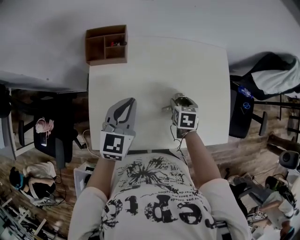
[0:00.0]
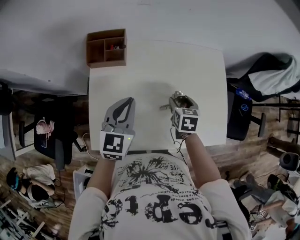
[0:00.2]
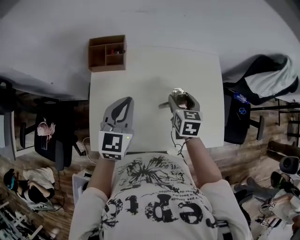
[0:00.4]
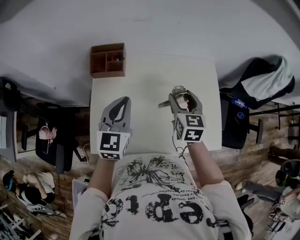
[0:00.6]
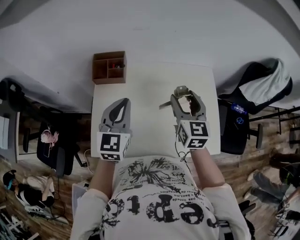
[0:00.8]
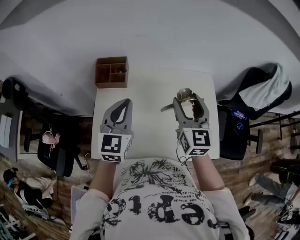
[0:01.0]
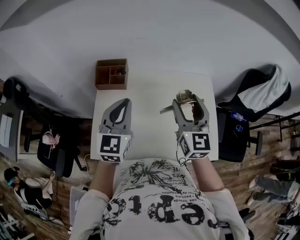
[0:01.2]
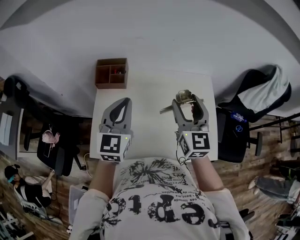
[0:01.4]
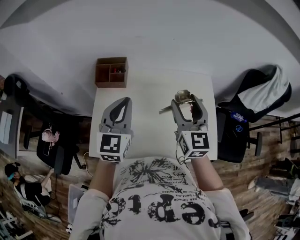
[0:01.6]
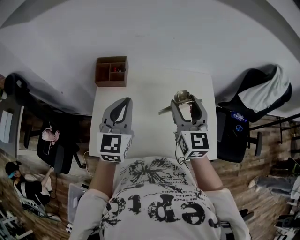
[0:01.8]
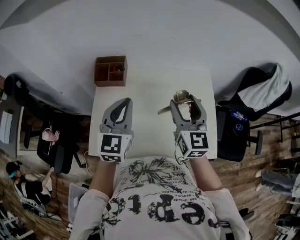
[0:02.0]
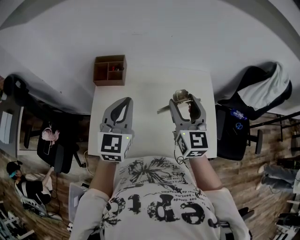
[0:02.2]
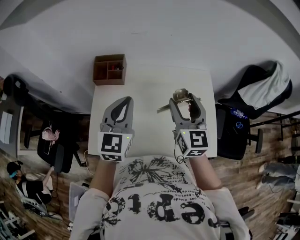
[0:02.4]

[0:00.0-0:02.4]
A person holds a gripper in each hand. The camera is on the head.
0:00.0 to 0:01.2: The left gripper goes about 15 cm upward, while the right gripper goes approximately 35 cm upward, and angles its fingers upward, by some 60 degrees.
0:01.2 to 0:02.4: The grippers move only a little.

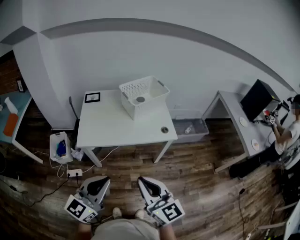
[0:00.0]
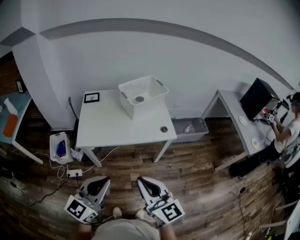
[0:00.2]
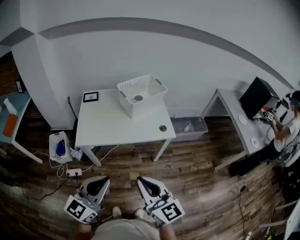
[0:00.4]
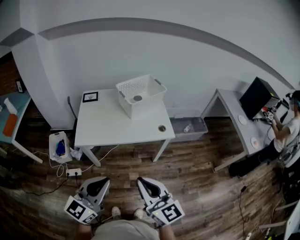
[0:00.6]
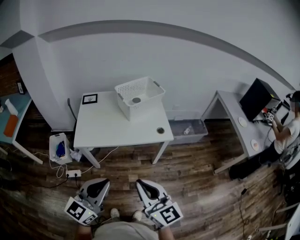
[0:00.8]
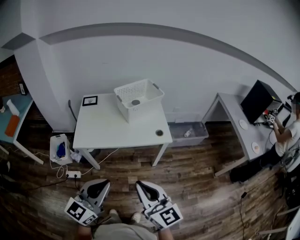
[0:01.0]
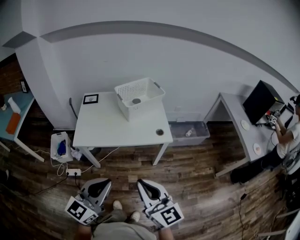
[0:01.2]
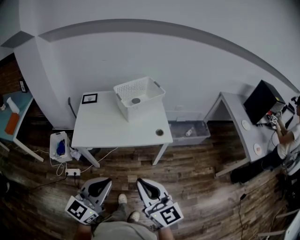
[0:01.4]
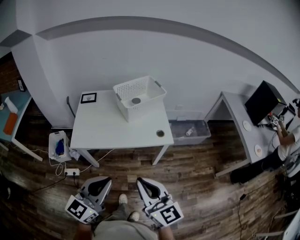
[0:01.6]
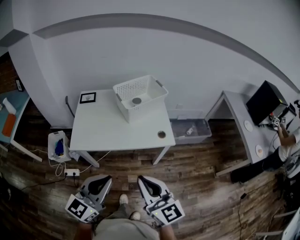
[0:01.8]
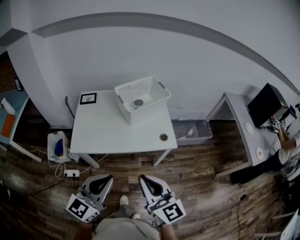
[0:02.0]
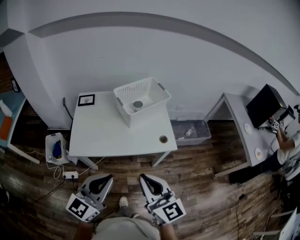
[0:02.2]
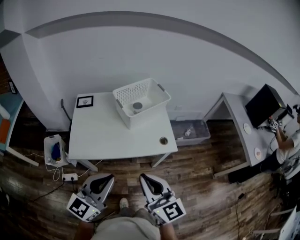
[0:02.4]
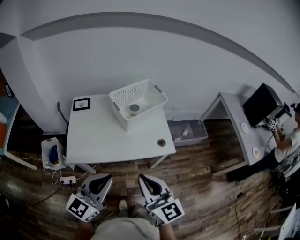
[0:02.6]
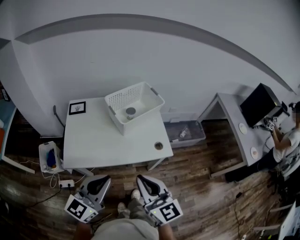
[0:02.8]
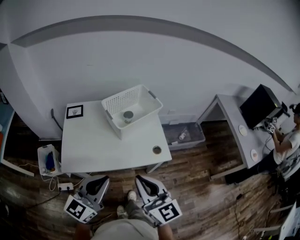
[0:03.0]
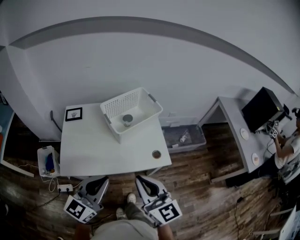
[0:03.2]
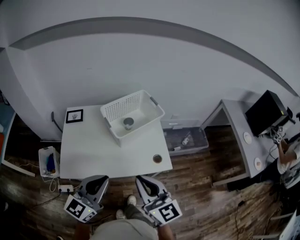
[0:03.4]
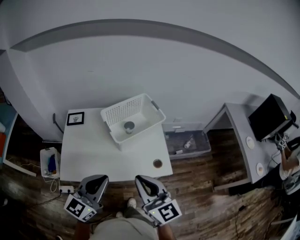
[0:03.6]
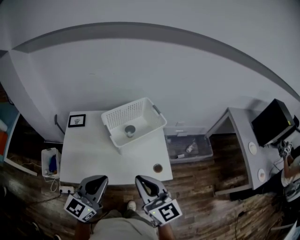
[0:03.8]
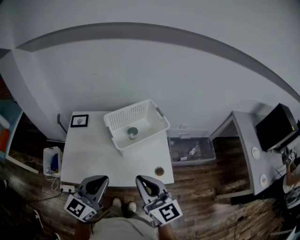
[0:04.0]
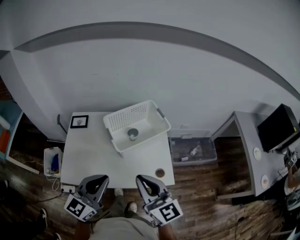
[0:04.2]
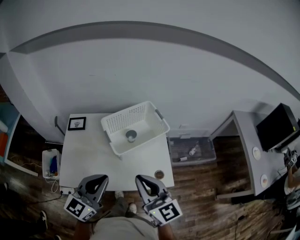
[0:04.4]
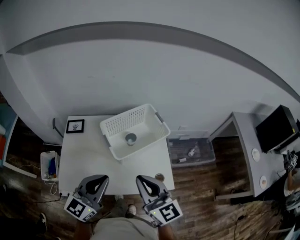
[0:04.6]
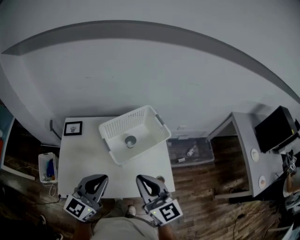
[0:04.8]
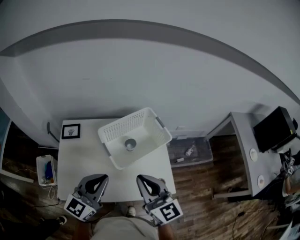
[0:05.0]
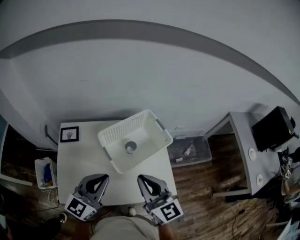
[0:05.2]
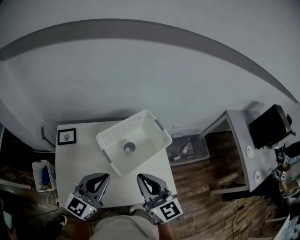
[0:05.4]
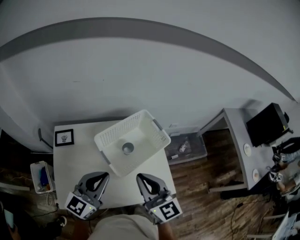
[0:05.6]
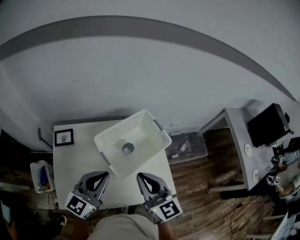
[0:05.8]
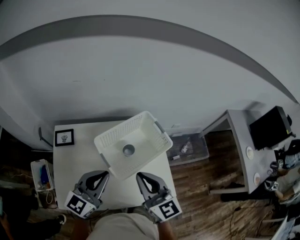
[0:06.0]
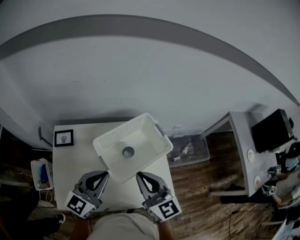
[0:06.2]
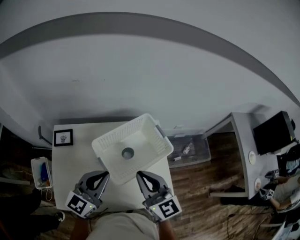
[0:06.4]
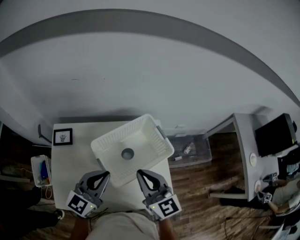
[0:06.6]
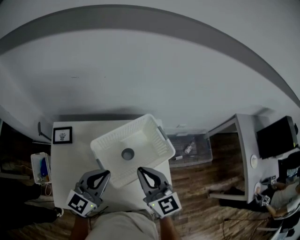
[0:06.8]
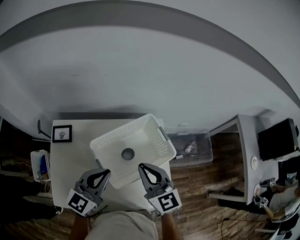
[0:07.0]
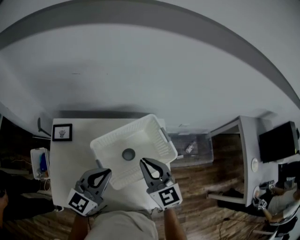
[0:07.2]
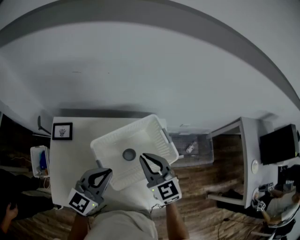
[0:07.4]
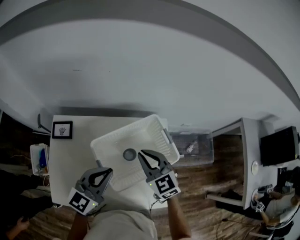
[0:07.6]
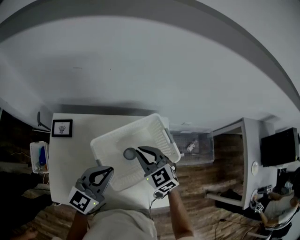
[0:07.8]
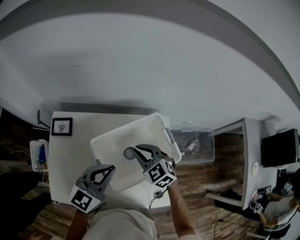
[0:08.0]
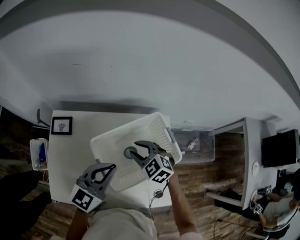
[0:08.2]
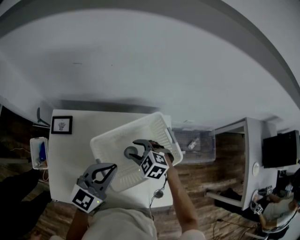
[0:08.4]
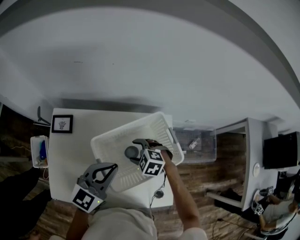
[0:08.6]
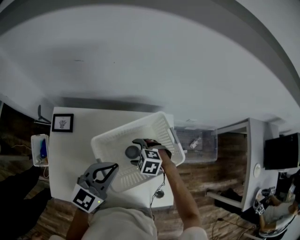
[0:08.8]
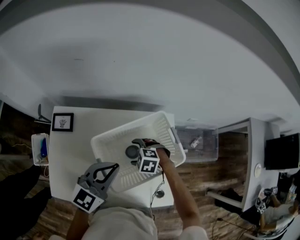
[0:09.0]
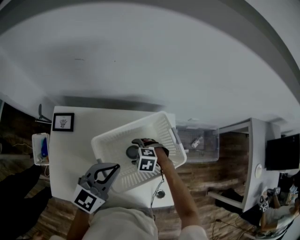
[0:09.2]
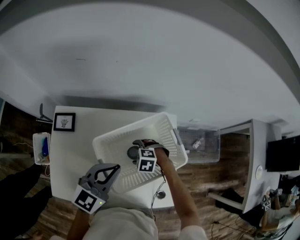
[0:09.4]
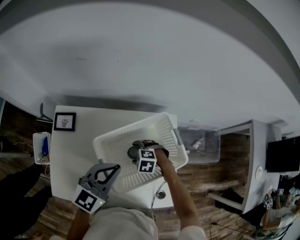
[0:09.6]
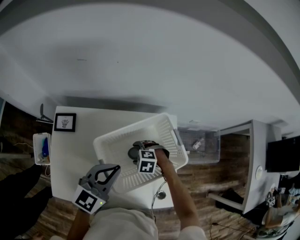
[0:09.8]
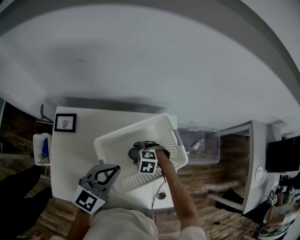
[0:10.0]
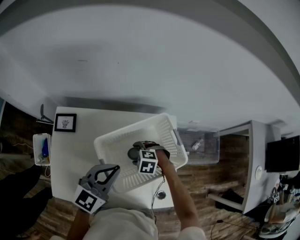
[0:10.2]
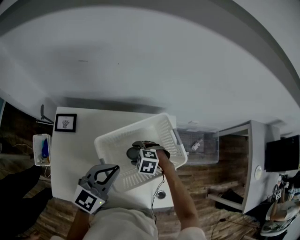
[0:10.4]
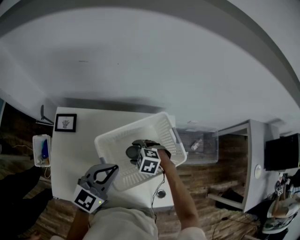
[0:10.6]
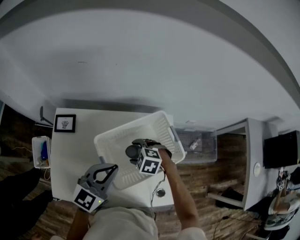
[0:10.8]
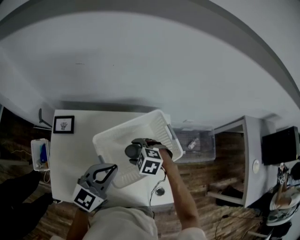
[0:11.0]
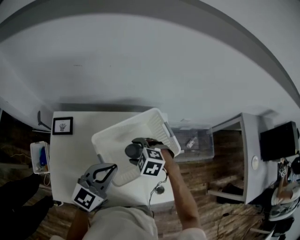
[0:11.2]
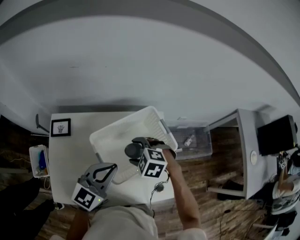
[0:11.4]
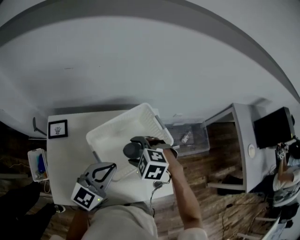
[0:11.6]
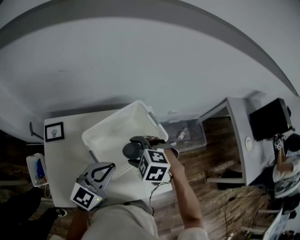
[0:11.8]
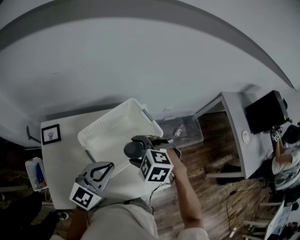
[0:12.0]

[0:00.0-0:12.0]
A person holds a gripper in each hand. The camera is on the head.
0:00.0 to 0:01.6: The grippers both shift to the right by about 5 cm.
0:01.6 to 0:03.0: The grippers both shift forward by approximately 20 cm.
0:03.0 to 0:04.4: The two grippers go roughly 15 cm forward.
0:04.4 to 0:06.0: Both grippers travel together forward, roughly 15 cm.
0:06.0 to 0:07.6: The left gripper heads forward, covering about 10 cm. Meanwhile the right gripper travels forward and downward by approximately 20 cm, and rotates about 30 degrees.
0:07.6 to 0:09.0: The right gripper is displaced downward by about 20 cm, angles its fingers downward, by some 40 degrees, and opens.
0:09.0 to 0:10.4: The grippers move only a little.
0:10.4 to 0:12.0: The right gripper heads upward, covering approximately 20 cm, and turns by about 20 degrees; the left gripper changes place by roughly 10 cm.

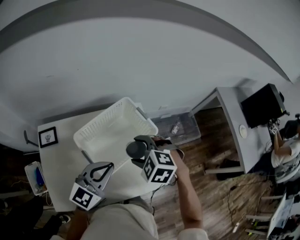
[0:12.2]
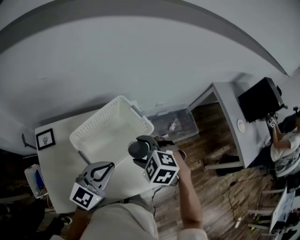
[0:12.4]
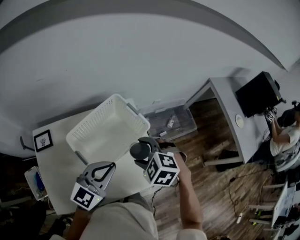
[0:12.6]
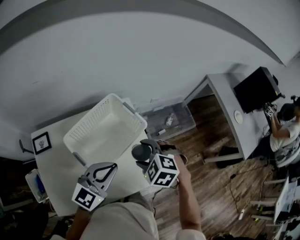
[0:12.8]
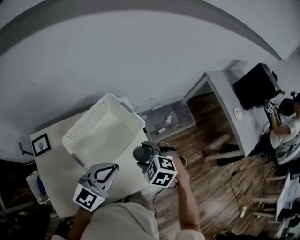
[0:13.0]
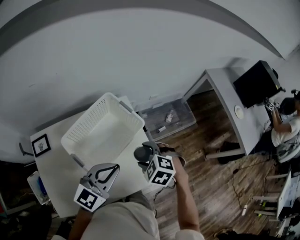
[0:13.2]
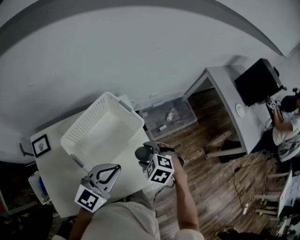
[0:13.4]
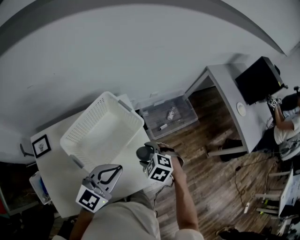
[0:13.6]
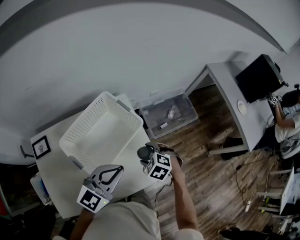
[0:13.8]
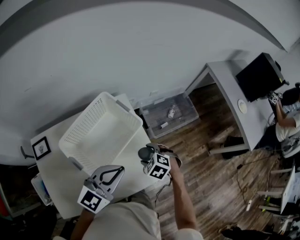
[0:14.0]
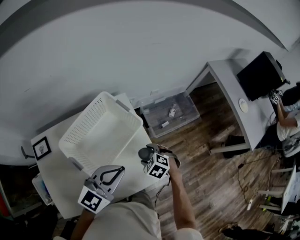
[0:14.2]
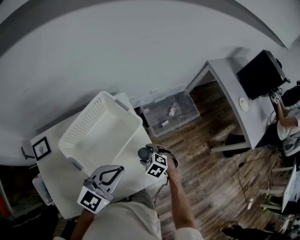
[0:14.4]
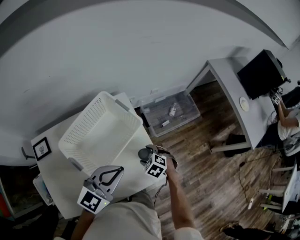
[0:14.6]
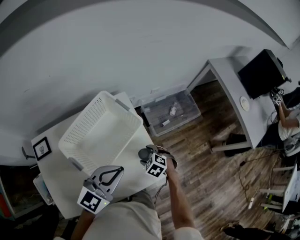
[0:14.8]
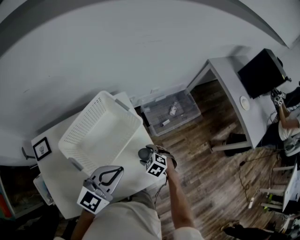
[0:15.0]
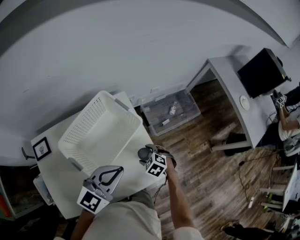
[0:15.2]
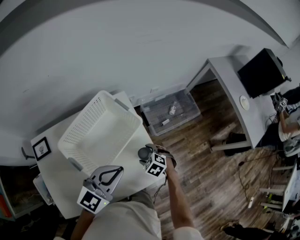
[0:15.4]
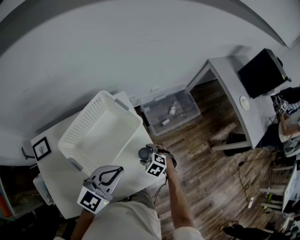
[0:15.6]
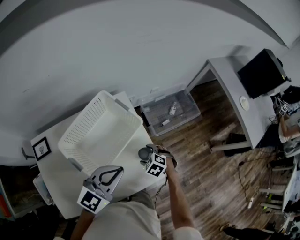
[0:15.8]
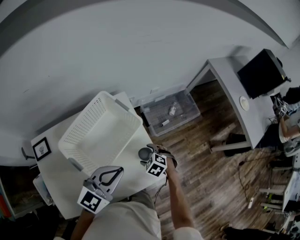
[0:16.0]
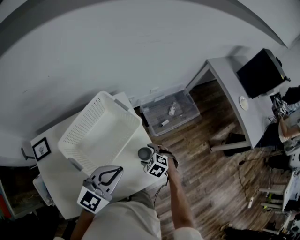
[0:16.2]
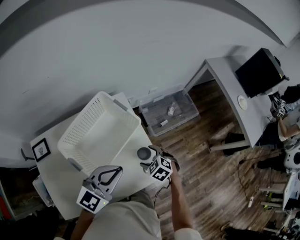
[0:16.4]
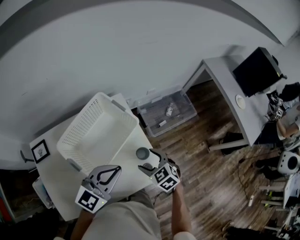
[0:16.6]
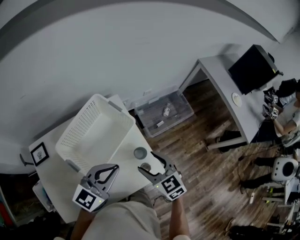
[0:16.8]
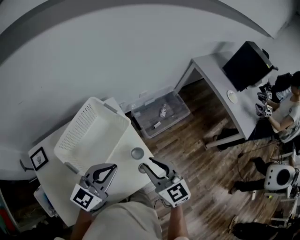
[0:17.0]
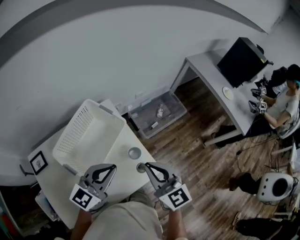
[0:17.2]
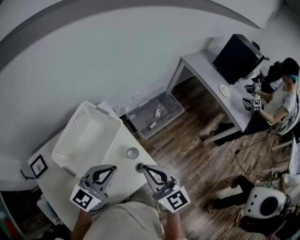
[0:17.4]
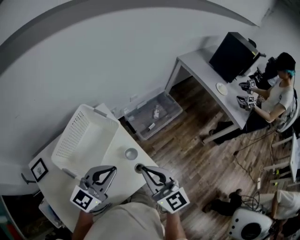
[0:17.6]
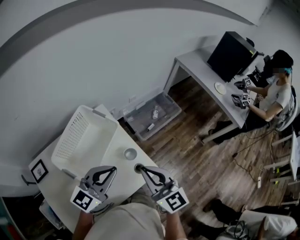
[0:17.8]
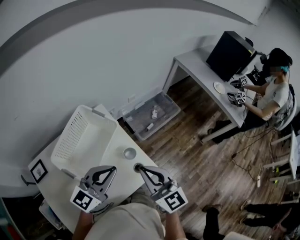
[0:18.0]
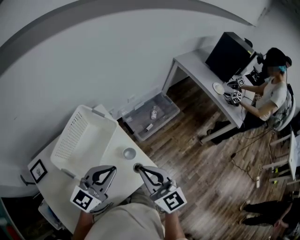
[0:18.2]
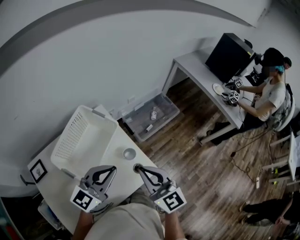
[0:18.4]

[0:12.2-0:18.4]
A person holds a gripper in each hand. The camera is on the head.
0:12.2 to 0:13.8: The right gripper travels downward and to the right by roughly 20 cm, and rotates about 20 degrees, while the left gripper shifts roughly 10 cm to the right.
0:13.8 to 0:15.4: The right gripper shifts some 10 cm downward.
0:15.4 to 0:16.8: The right gripper heads upward, covering roughly 20 cm, and tips its fingers upward by some 30 degrees.
0:16.8 to 0:18.4: The left gripper ends up approximately 5 cm from where it was, while the right gripper heads upward and backward, covering about 15 cm, tips its fingers upward by some 30 degrees, and closes up.

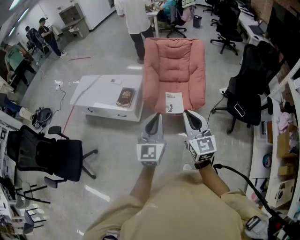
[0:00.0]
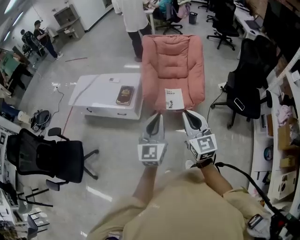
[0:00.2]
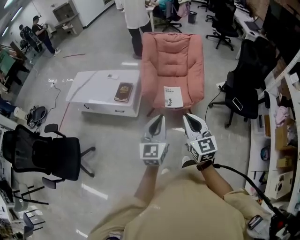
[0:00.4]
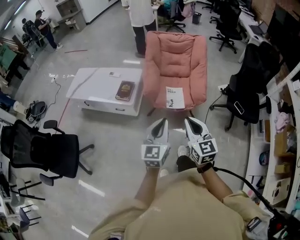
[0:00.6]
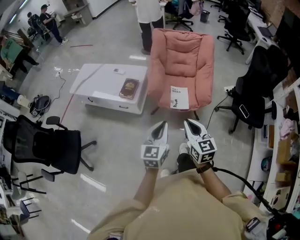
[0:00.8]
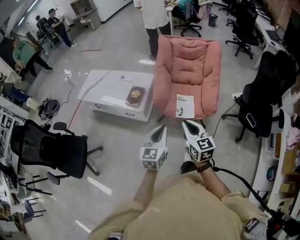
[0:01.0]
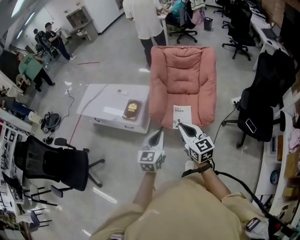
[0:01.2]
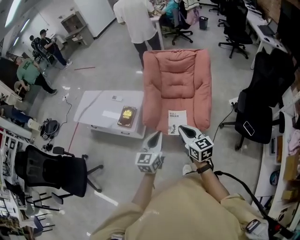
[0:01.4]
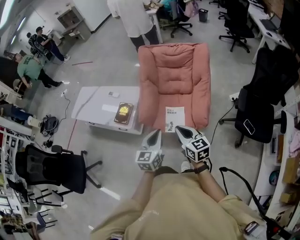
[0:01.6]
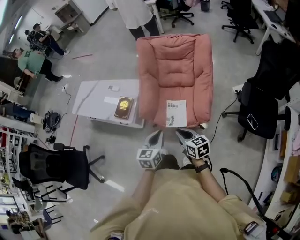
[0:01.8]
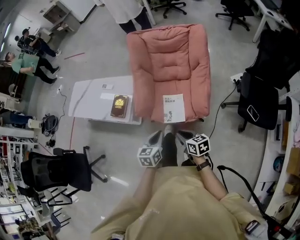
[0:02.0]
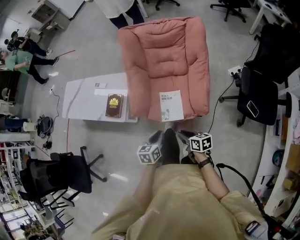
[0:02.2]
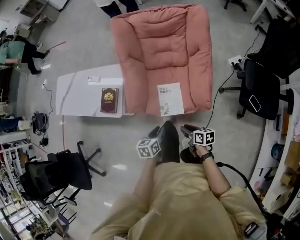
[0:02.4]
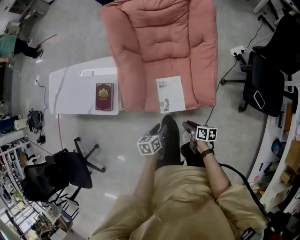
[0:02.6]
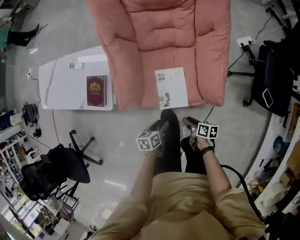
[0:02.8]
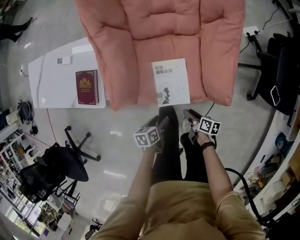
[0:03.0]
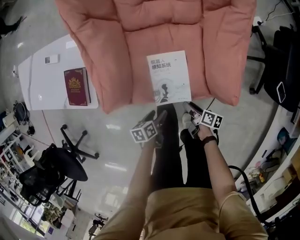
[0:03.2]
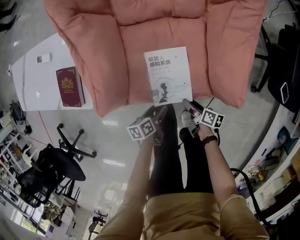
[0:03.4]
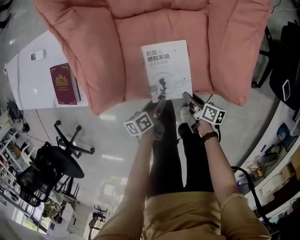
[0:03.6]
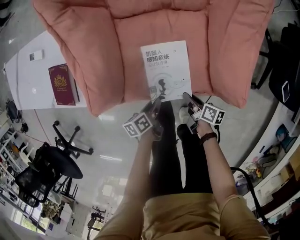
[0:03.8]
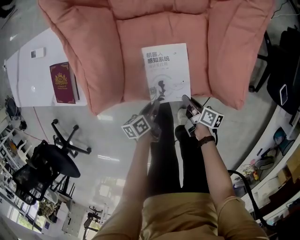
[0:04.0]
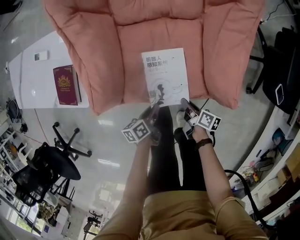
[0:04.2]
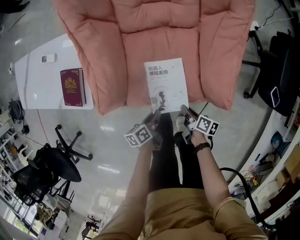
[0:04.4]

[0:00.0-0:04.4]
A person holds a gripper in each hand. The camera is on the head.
0:00.0 to 0:01.4: The grippers both shift forward and downward by about 25 cm. The right gripper turns by approximately 30 degrees.
0:01.4 to 0:03.0: The grippers both shift downward by about 60 cm. The right gripper twists approximately 70 degrees clockwise, seen from behind, and opens. Meanwhile the left gripper tilts its fingers some 40 degrees downward, and opens up.
0:03.0 to 0:04.4: The right gripper moves about 10 cm downward and comes back, and closes its fingers; the left gripper moves some 10 cm downward and comes back, swivels some 20 degrees, and closes.
